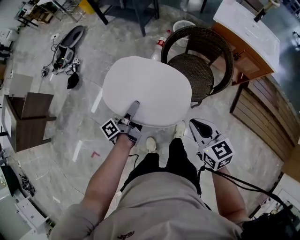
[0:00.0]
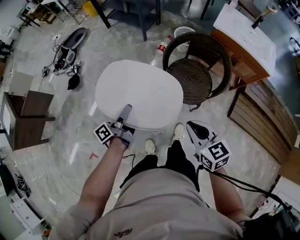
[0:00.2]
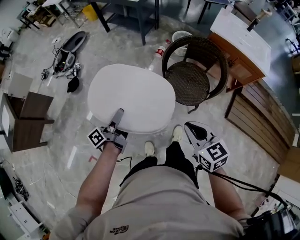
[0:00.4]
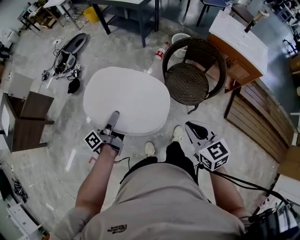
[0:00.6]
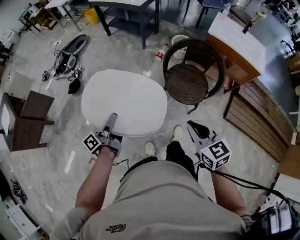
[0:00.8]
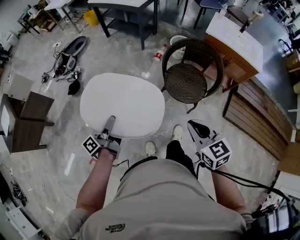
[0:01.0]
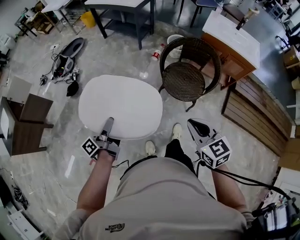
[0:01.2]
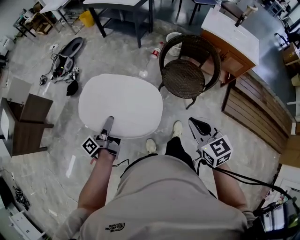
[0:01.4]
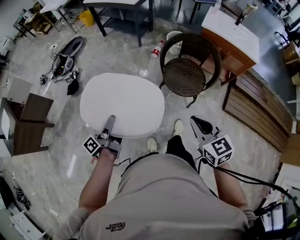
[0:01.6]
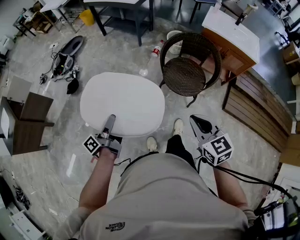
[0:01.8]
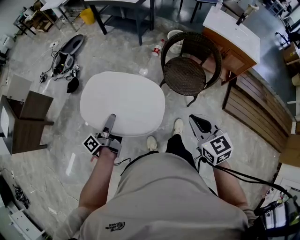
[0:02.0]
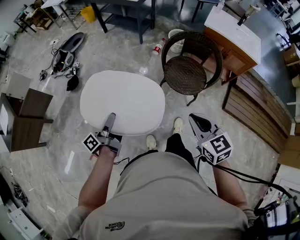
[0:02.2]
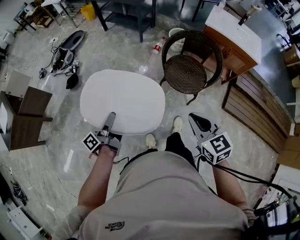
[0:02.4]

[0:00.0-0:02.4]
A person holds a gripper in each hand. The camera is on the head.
0:00.0 to 0:01.2: The right gripper moves roughly 15 cm.

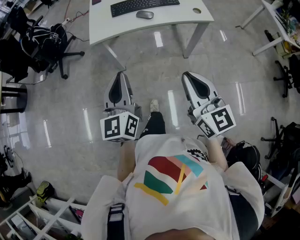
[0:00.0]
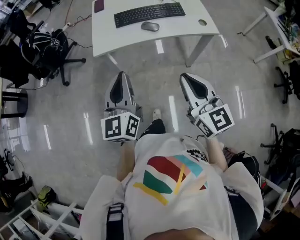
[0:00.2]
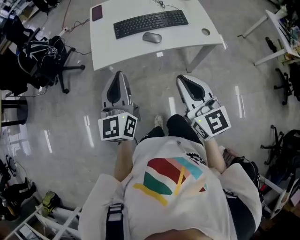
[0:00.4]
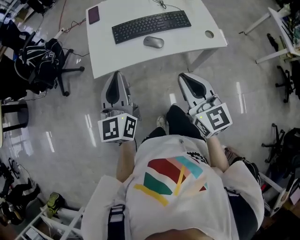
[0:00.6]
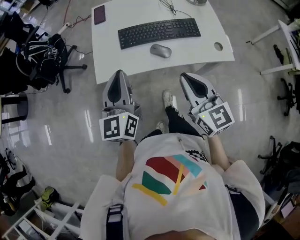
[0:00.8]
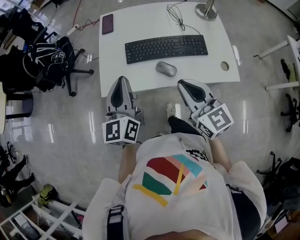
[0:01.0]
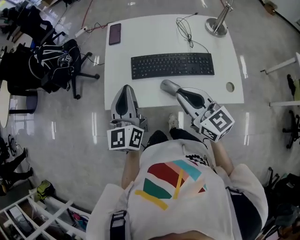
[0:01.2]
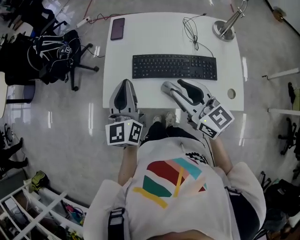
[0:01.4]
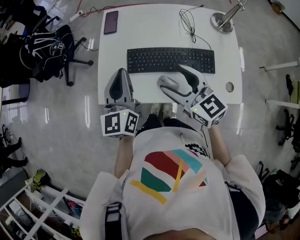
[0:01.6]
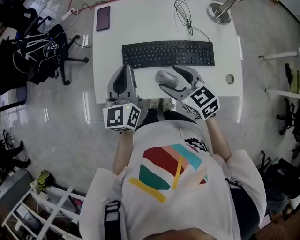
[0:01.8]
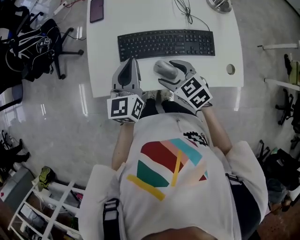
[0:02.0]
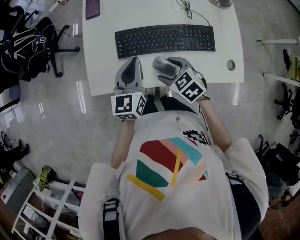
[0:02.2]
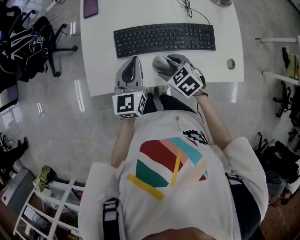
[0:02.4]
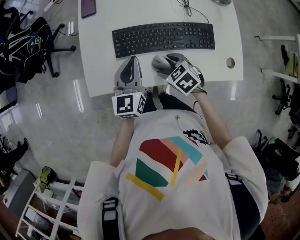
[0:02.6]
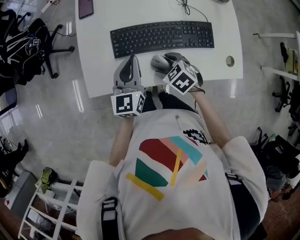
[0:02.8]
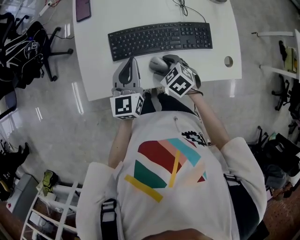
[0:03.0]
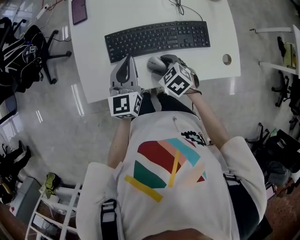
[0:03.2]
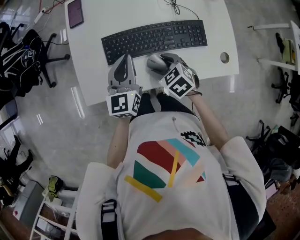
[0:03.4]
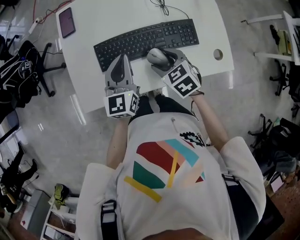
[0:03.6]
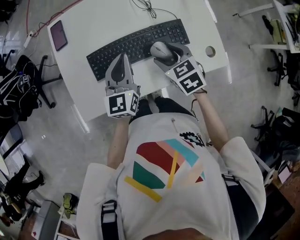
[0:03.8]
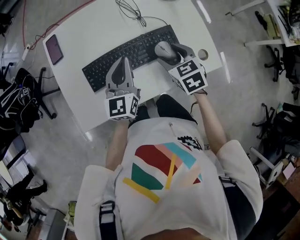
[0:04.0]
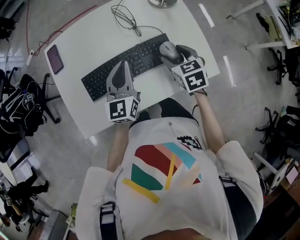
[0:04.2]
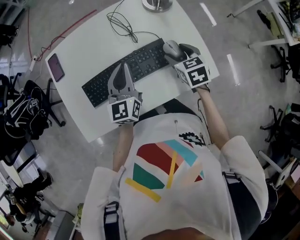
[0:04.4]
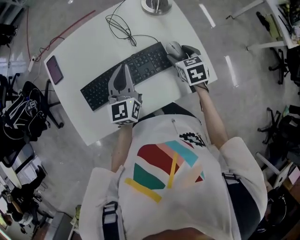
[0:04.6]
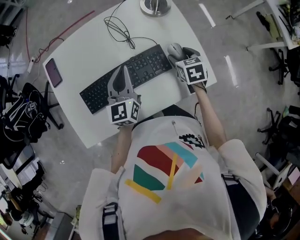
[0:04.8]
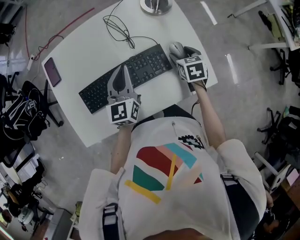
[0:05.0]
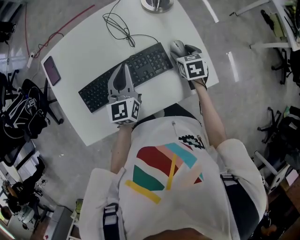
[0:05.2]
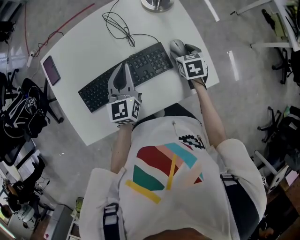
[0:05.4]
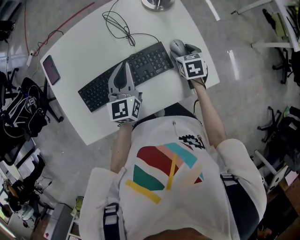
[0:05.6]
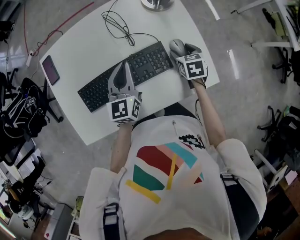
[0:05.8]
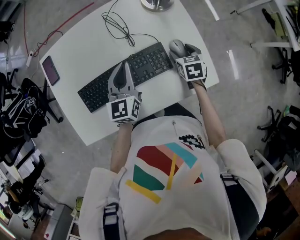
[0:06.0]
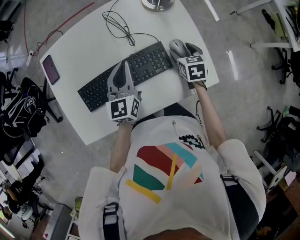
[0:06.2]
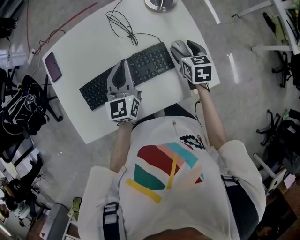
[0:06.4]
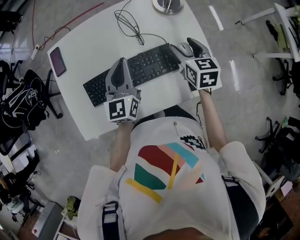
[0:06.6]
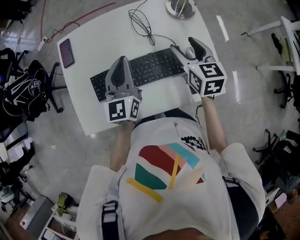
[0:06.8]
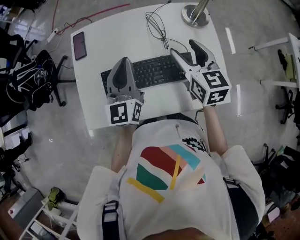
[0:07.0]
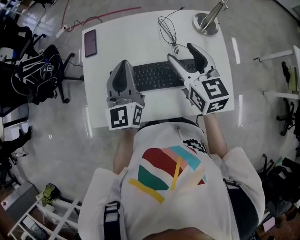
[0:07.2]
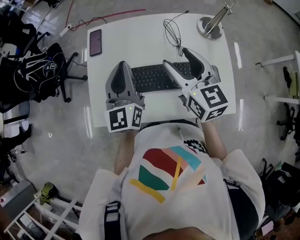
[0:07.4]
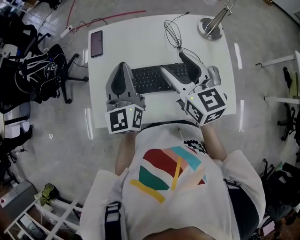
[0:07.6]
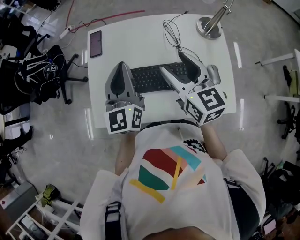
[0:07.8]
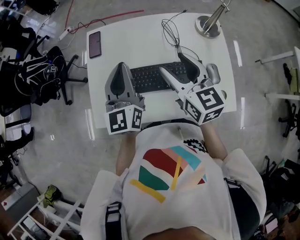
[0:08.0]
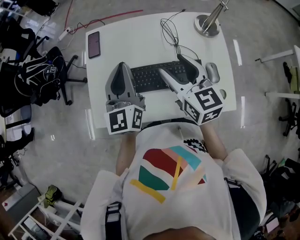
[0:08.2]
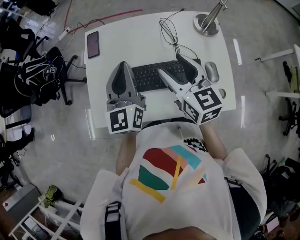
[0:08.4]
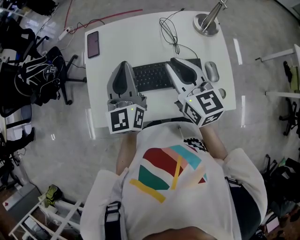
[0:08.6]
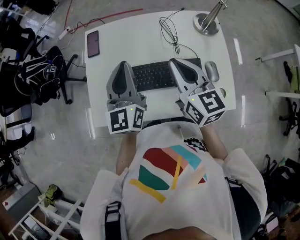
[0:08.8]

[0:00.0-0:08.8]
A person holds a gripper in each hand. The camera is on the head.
0:00.0 to 0:01.4: The pair of grippers is taken forward, about 50 cm. The right gripper rotates about 30 degrees.
0:01.4 to 0:03.0: The left gripper moves downward, roughly 15 cm, and swivels approximately 20 degrees. The right gripper travels downward by about 25 cm, angles its fingers downward, by about 50 degrees, and opens.
0:03.0 to 0:04.4: The right gripper shifts by about 30 cm, and rotates approximately 40 degrees. The left gripper shifts by some 20 cm.
0:04.4 to 0:05.8: The right gripper travels downward and to the right by some 10 cm; the left gripper changes place by roughly 5 cm.
0:05.8 to 0:07.4: The right gripper is displaced upward by some 25 cm, and angles its fingers upward, by about 40 degrees, while the left gripper shifts by some 25 cm, and swivels some 30 degrees.
0:07.4 to 0:08.8: The right gripper closes.

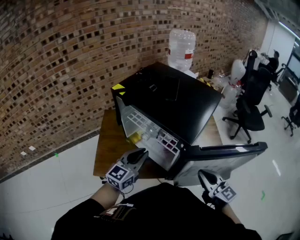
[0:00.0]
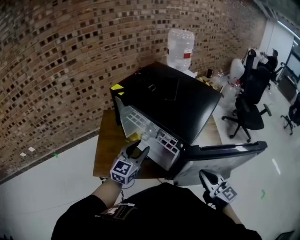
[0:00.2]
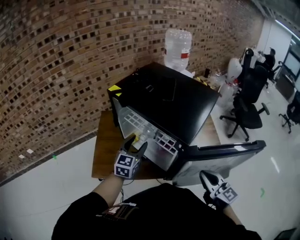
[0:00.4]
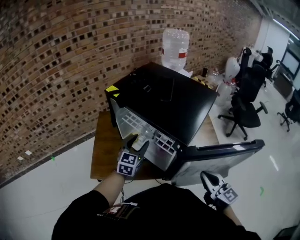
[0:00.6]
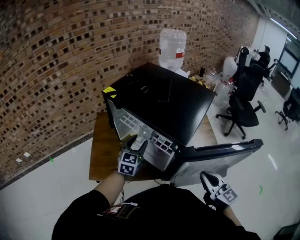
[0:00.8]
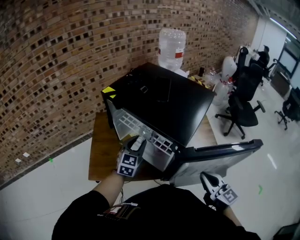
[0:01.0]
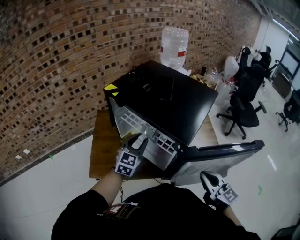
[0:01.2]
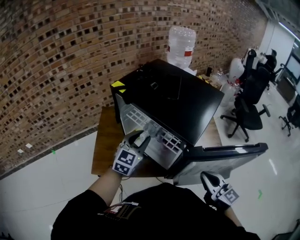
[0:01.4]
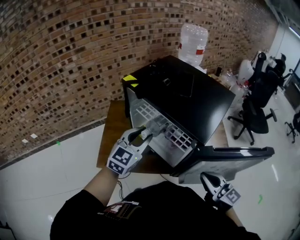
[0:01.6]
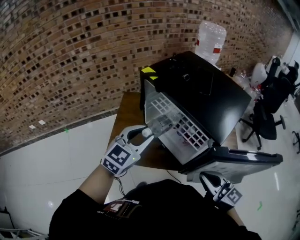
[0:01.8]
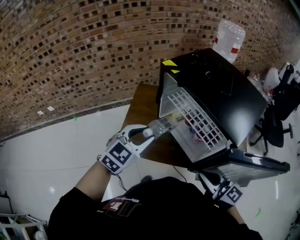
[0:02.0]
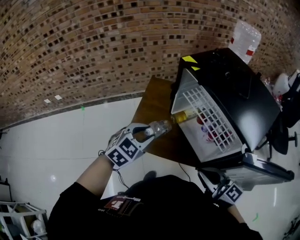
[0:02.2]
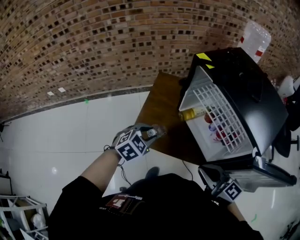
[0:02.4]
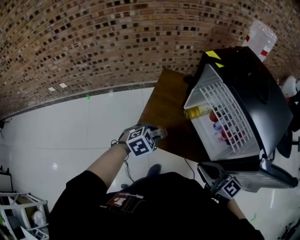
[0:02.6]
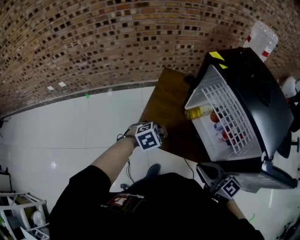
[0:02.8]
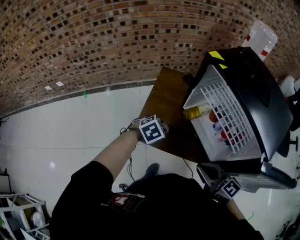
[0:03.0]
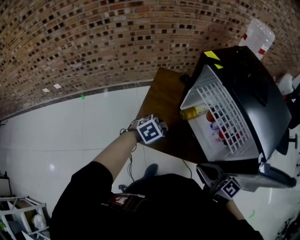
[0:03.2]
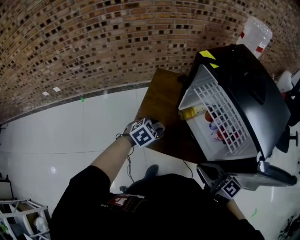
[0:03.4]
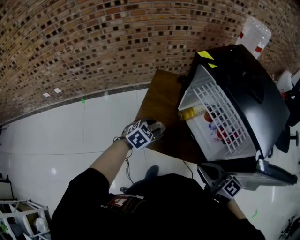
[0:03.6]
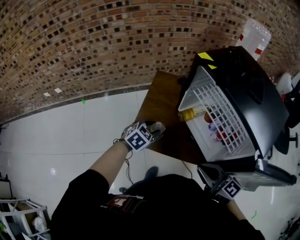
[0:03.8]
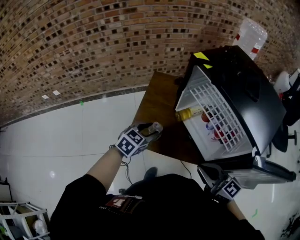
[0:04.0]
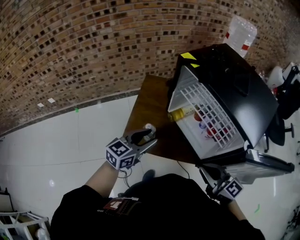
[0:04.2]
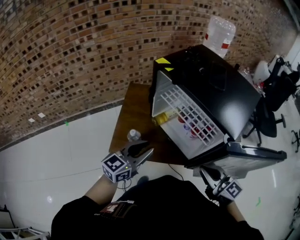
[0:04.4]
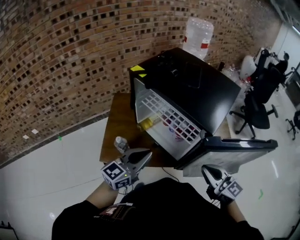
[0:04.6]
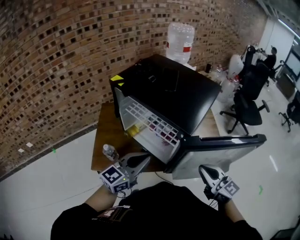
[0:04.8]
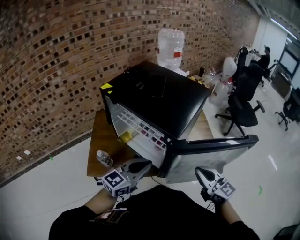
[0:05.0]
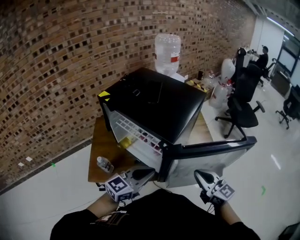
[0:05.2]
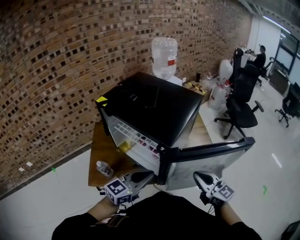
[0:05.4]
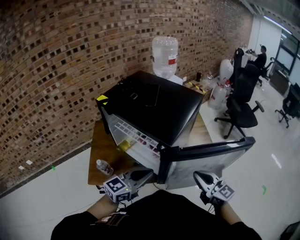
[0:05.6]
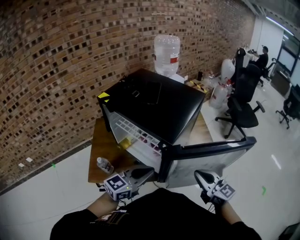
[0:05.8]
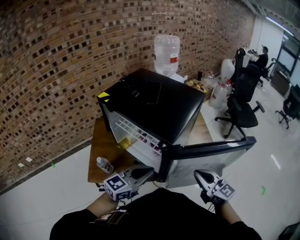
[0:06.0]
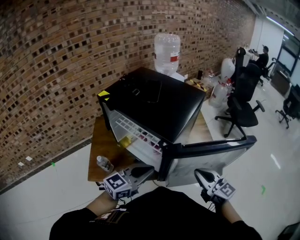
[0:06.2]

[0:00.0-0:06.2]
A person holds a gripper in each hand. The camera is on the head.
0:00.0 to 0:01.6: The left gripper moves about 5 cm, and opens.
0:01.6 to 0:03.2: The left gripper is displaced downward and to the left by some 30 cm, and tips its fingers downward by about 50 degrees, while the right gripper heads to the left, covering roughly 20 cm, and swivels roughly 30 degrees.
0:03.2 to 0:04.6: The left gripper is displaced upward, to the right and backward by about 30 cm, tips its fingers upward by some 60 degrees, and closes its fingers; the right gripper is displaced to the right by about 20 cm, and turns by about 20 degrees.
0:04.6 to 0:06.2: The two grippers go roughly 10 cm to the right.

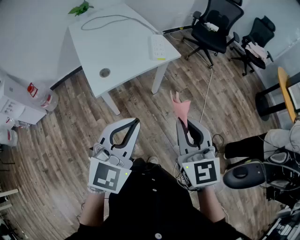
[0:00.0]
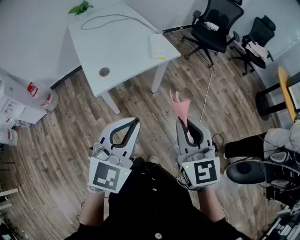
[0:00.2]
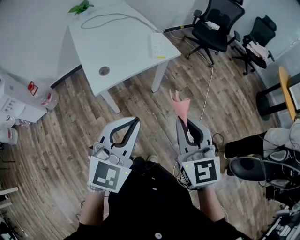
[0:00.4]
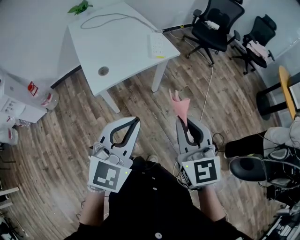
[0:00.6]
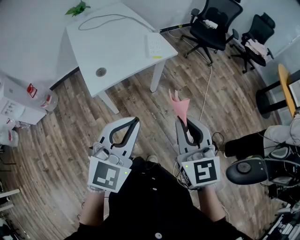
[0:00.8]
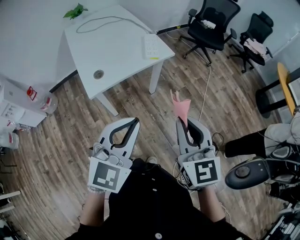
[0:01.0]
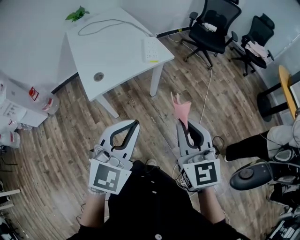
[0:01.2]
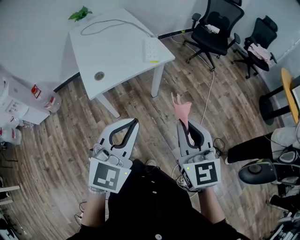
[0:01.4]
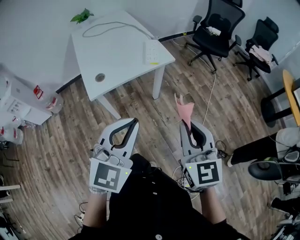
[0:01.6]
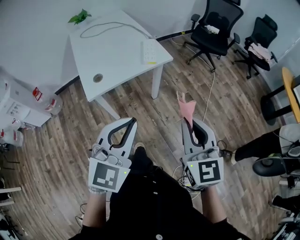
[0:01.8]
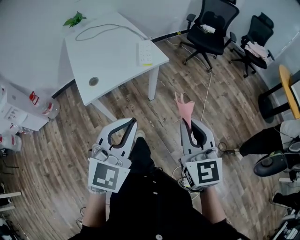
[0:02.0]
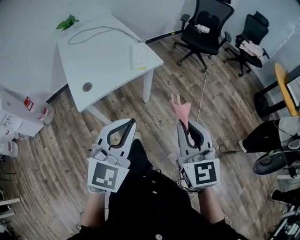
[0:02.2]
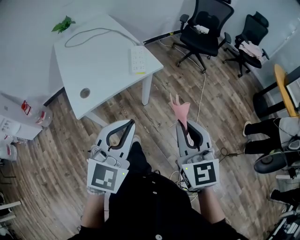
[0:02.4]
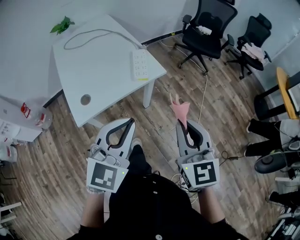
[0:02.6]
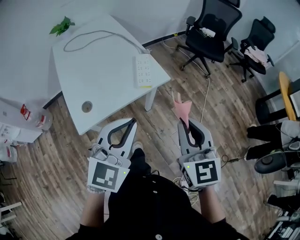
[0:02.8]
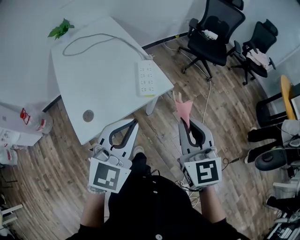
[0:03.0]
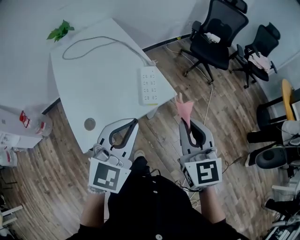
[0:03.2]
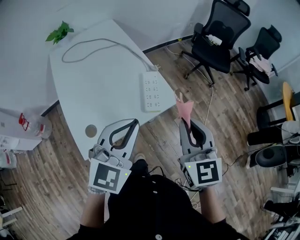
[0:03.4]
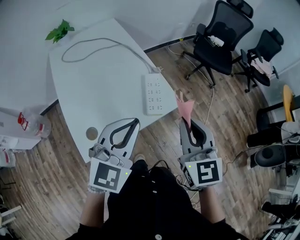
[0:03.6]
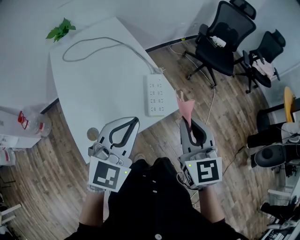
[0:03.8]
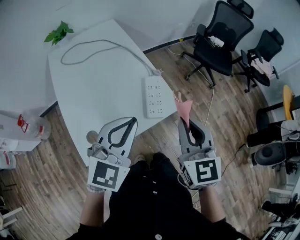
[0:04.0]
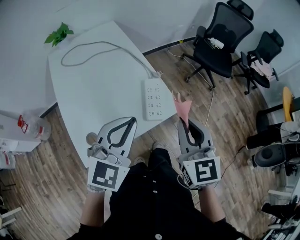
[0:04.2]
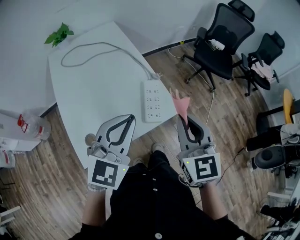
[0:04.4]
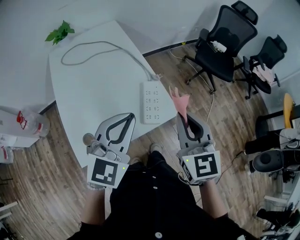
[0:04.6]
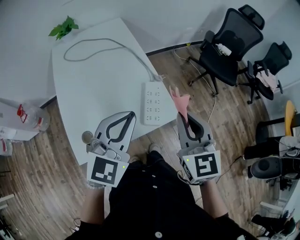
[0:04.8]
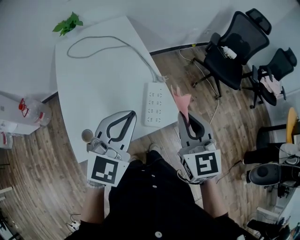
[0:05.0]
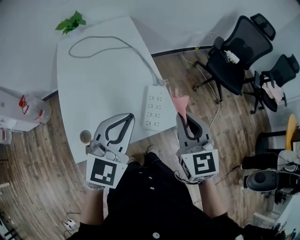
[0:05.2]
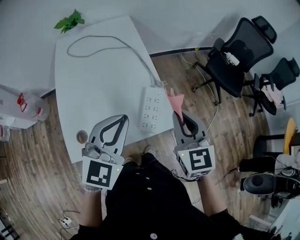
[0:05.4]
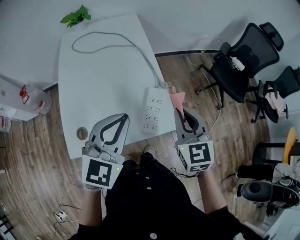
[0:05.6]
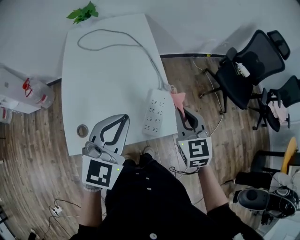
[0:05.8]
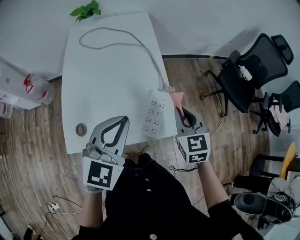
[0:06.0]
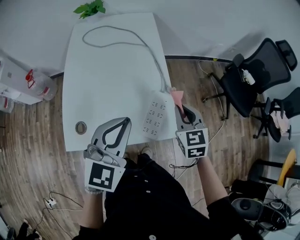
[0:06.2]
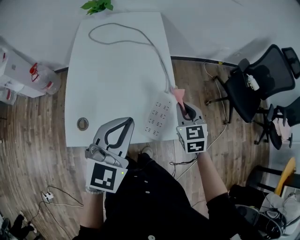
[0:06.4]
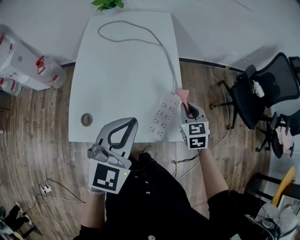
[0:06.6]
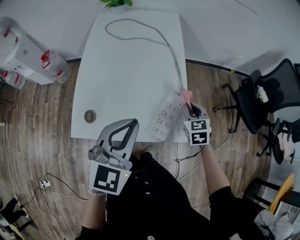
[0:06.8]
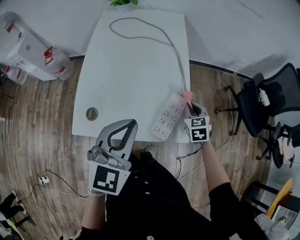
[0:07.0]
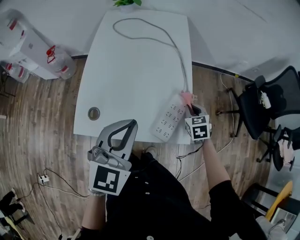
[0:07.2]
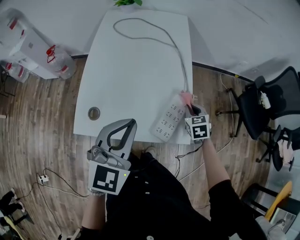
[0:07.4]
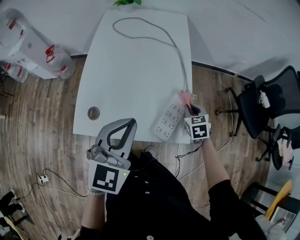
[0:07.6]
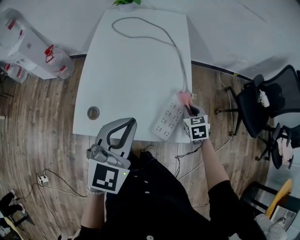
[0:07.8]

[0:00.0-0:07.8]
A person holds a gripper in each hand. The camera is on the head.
0:00.0 to 0:01.6: The two grippers go about 10 cm to the right.
0:01.6 to 0:03.2: Both grippers move forward, approximately 30 cm.
0:03.2 to 0:04.6: Both grippers move forward, some 10 cm.
0:04.6 to 0:06.2: The right gripper heads forward and downward, covering approximately 20 cm, and rotates roughly 20 degrees. Meanwhile the left gripper heads forward, covering approximately 5 cm, and swivels some 20 degrees.
0:06.2 to 0:07.8: The right gripper is displaced downward by about 15 cm.
